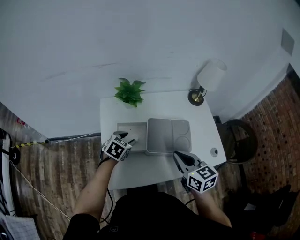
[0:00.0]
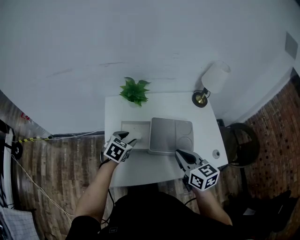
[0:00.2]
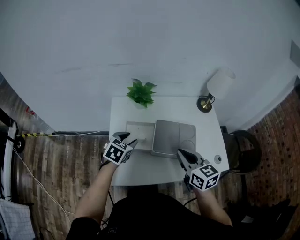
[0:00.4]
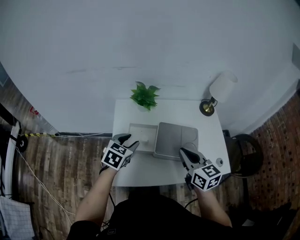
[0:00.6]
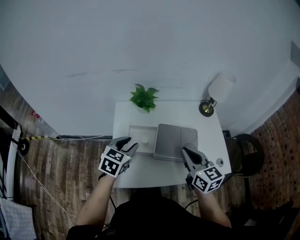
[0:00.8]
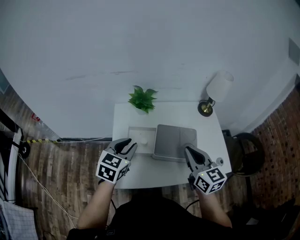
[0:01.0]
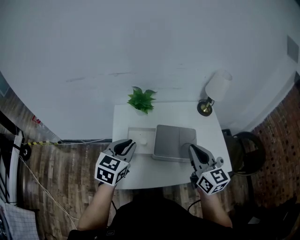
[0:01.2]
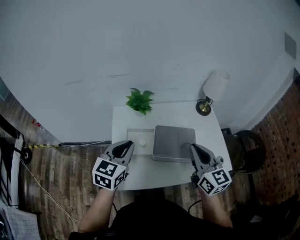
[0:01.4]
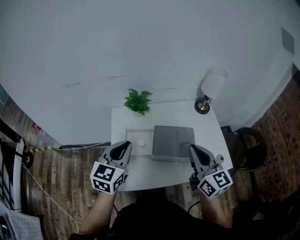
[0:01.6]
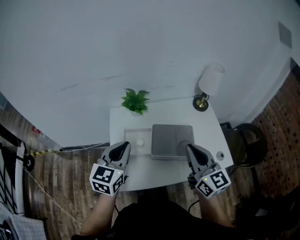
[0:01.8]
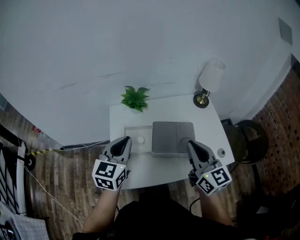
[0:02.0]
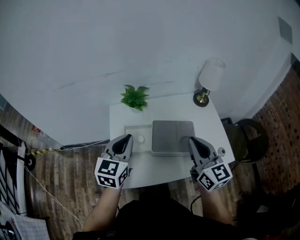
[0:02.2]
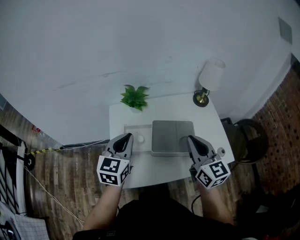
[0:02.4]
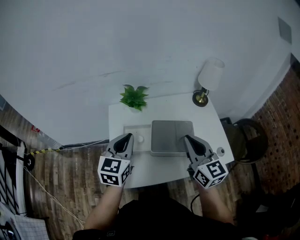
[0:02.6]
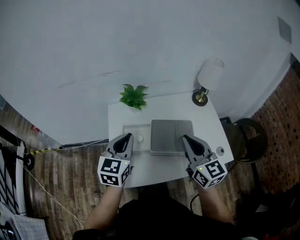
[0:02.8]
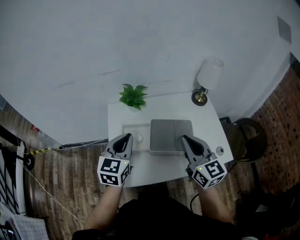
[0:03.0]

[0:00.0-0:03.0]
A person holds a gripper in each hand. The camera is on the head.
0:00.0 to 0:01.6: The left gripper moves upward and backward, roughly 25 cm, tips its fingers upward by roughly 30 degrees, and closes; the right gripper is displaced upward by some 10 cm, and turns by approximately 20 degrees.
0:01.6 to 0:03.0: The grippers move only a little.

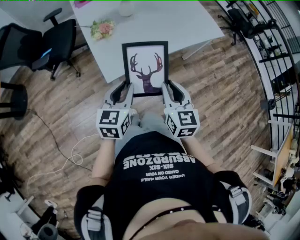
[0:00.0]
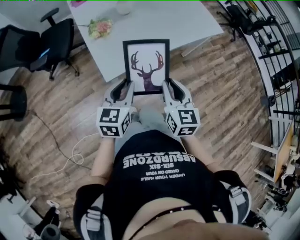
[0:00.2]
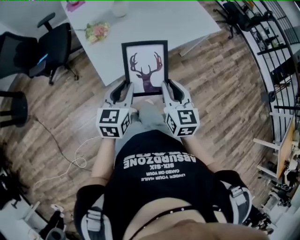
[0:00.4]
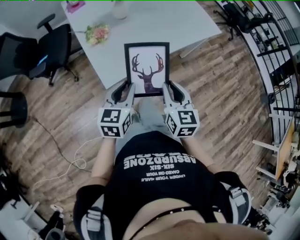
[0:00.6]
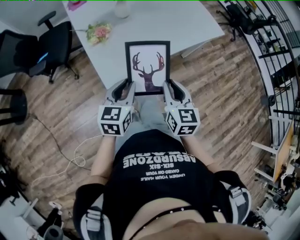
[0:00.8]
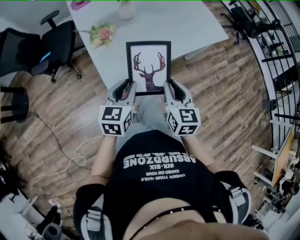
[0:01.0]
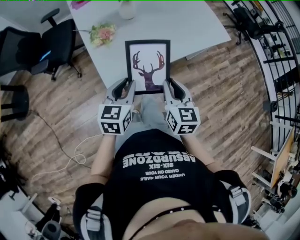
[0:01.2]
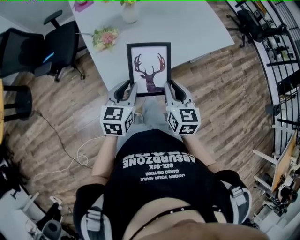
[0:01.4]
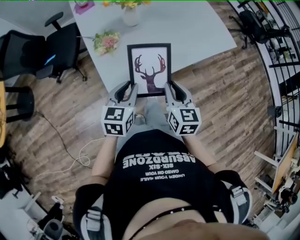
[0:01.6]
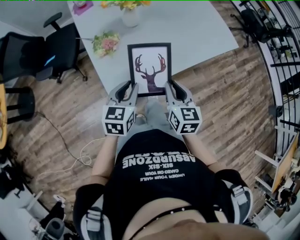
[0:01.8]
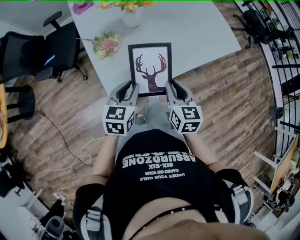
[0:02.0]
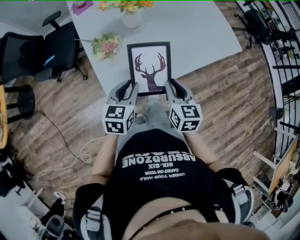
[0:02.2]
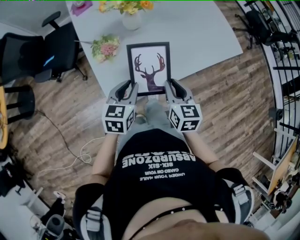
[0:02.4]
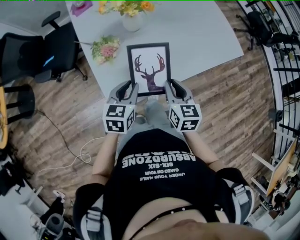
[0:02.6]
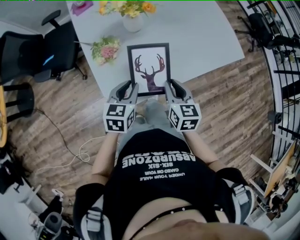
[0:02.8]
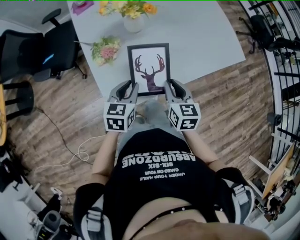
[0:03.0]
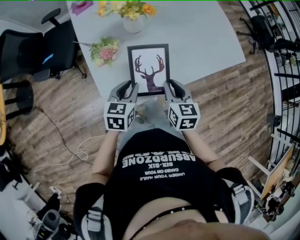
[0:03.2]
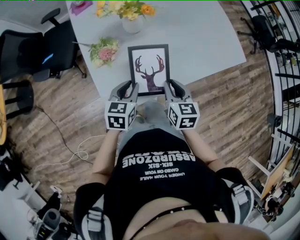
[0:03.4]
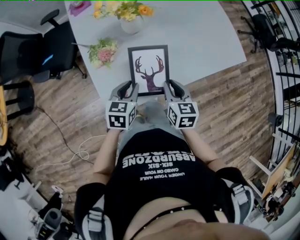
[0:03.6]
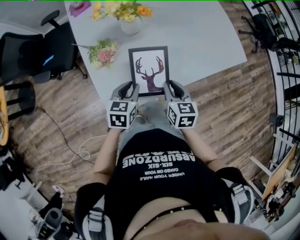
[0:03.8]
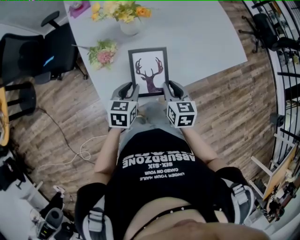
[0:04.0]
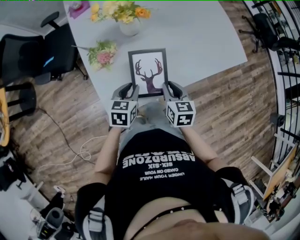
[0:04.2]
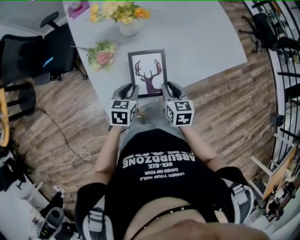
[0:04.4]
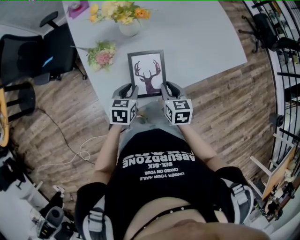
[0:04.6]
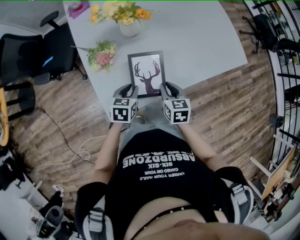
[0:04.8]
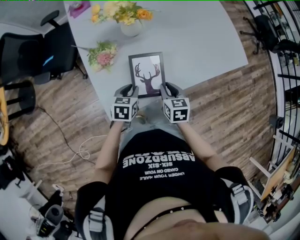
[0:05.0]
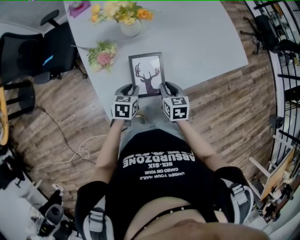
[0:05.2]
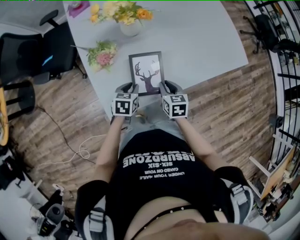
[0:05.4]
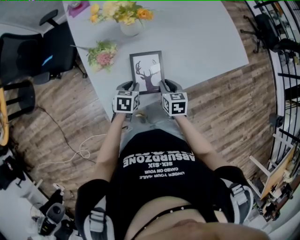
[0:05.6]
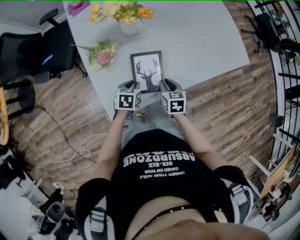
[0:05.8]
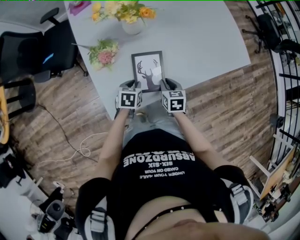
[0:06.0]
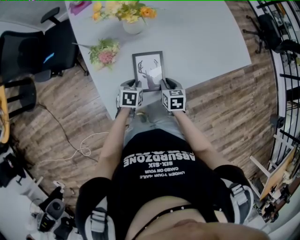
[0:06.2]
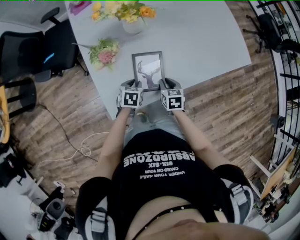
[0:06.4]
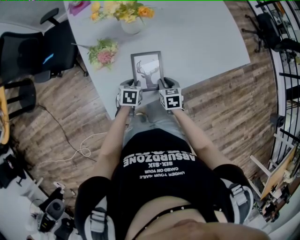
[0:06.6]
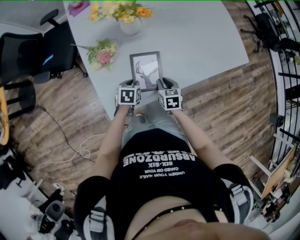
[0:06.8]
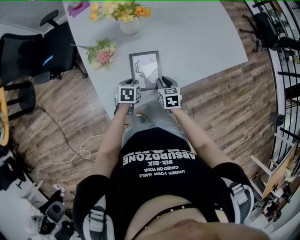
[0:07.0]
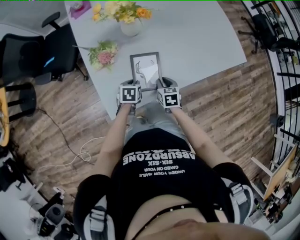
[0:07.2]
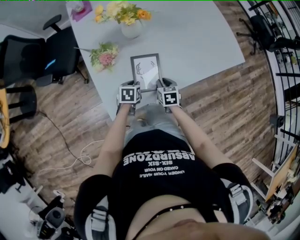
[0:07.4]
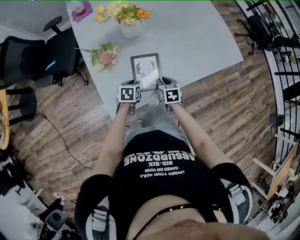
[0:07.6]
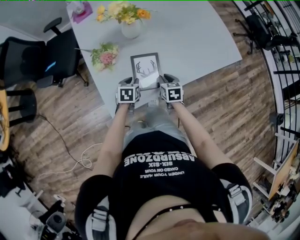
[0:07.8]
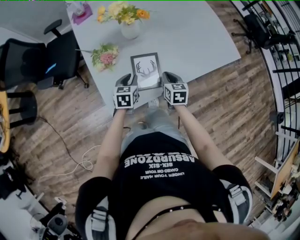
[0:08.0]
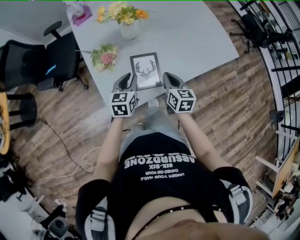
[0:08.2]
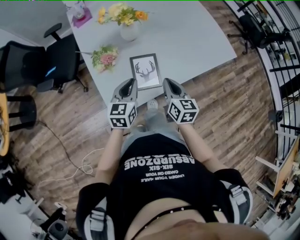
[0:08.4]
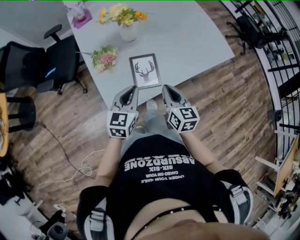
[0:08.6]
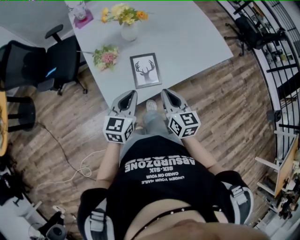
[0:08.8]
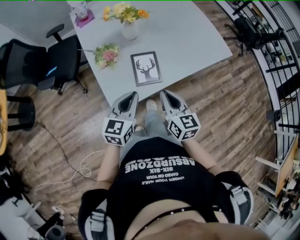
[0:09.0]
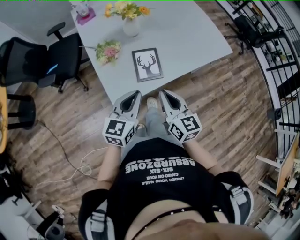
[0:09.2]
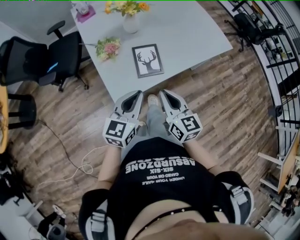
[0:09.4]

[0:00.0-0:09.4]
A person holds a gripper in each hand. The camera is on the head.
0:00.0 to 0:01.6: The two grippers go about 15 cm forward.
0:01.6 to 0:03.2: The two grippers go some 15 cm forward and downward.
0:03.2 to 0:04.8: Both grippers move downward, approximately 10 cm.
0:04.8 to 0:06.2: Both grippers move downward, roughly 10 cm.
0:06.2 to 0:07.8: The grippers stay close to where they were, moving slightly.
0:07.8 to 0:09.4: The grippers both shift upward and backward by roughly 30 cm. The right gripper tips its fingers upward by approximately 30 degrees; the left gripper tilts its fingers approximately 40 degrees upward.

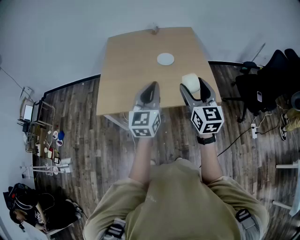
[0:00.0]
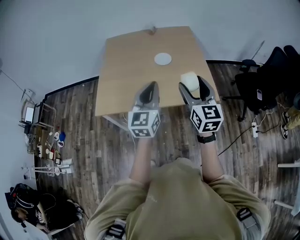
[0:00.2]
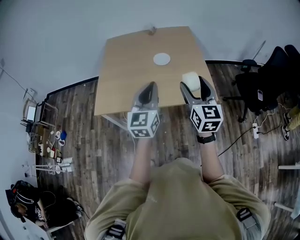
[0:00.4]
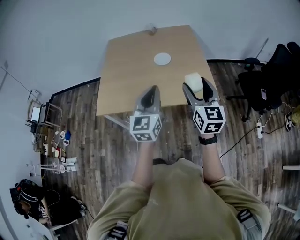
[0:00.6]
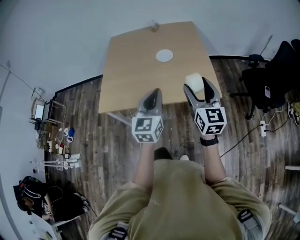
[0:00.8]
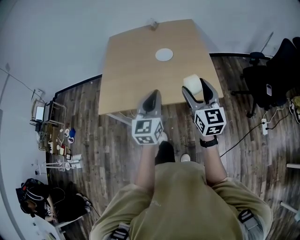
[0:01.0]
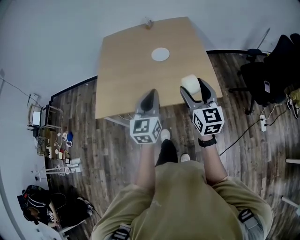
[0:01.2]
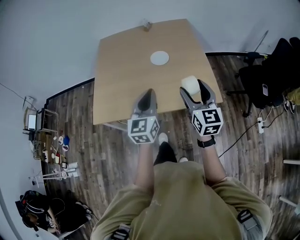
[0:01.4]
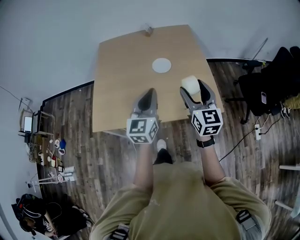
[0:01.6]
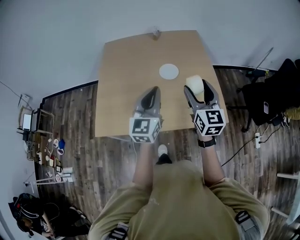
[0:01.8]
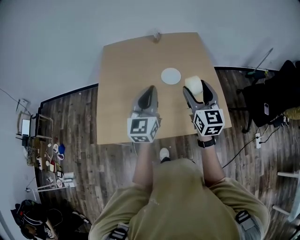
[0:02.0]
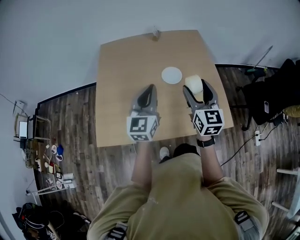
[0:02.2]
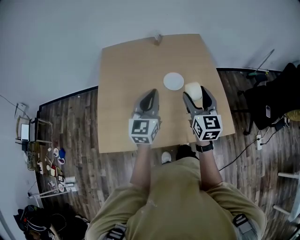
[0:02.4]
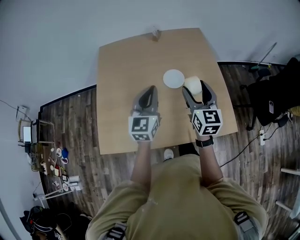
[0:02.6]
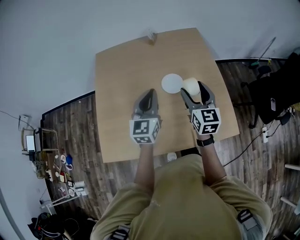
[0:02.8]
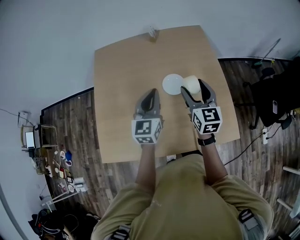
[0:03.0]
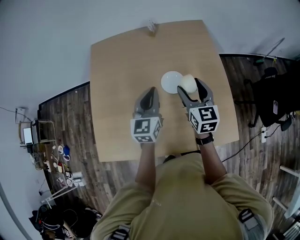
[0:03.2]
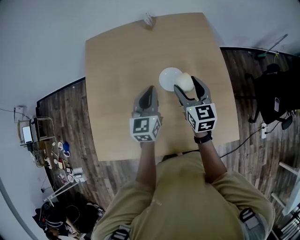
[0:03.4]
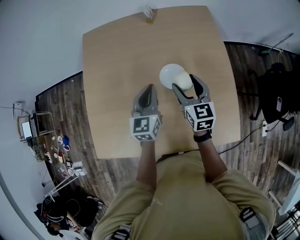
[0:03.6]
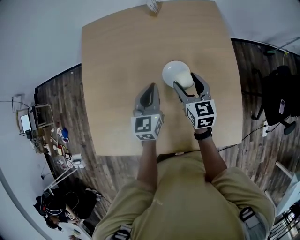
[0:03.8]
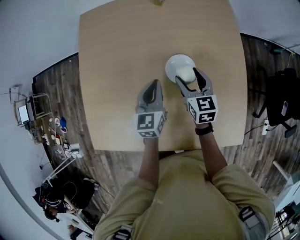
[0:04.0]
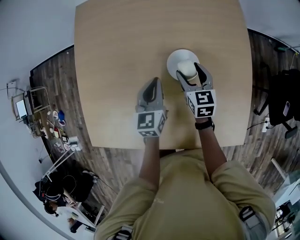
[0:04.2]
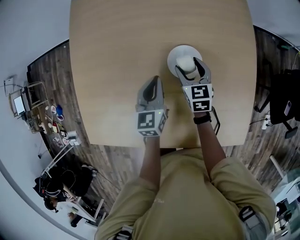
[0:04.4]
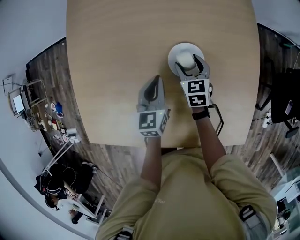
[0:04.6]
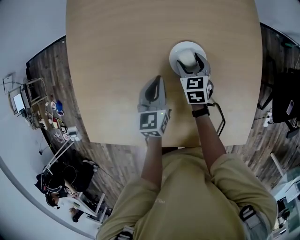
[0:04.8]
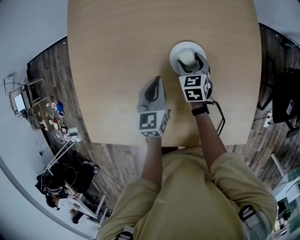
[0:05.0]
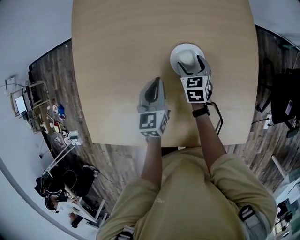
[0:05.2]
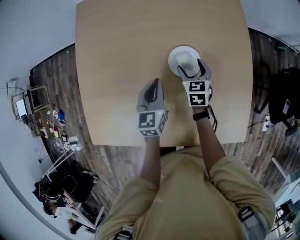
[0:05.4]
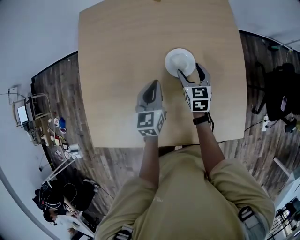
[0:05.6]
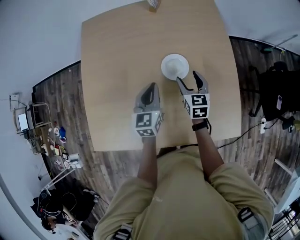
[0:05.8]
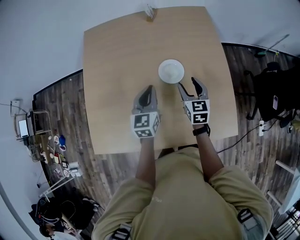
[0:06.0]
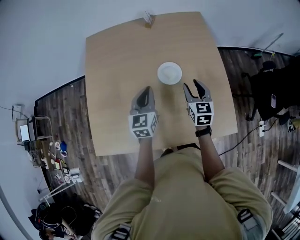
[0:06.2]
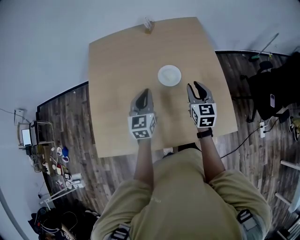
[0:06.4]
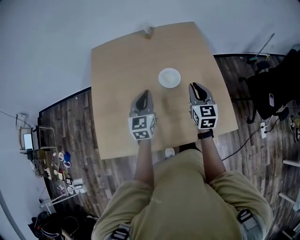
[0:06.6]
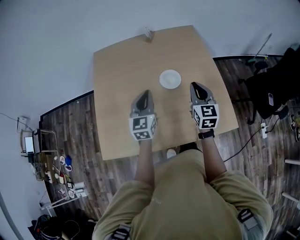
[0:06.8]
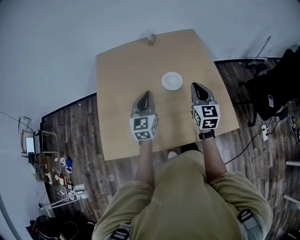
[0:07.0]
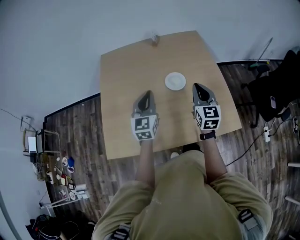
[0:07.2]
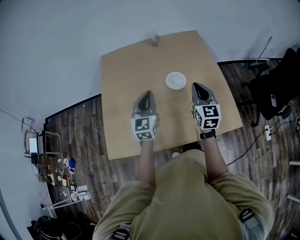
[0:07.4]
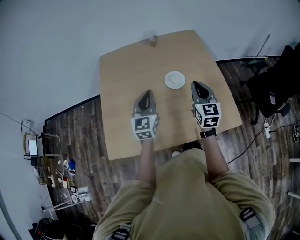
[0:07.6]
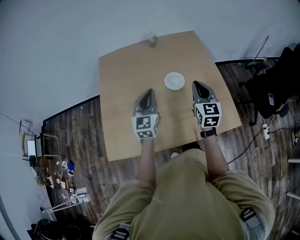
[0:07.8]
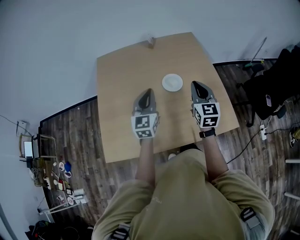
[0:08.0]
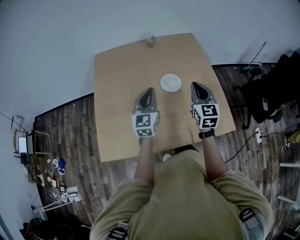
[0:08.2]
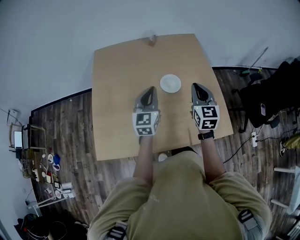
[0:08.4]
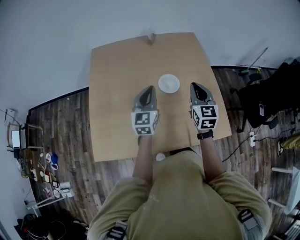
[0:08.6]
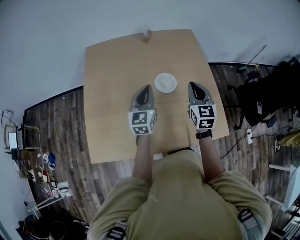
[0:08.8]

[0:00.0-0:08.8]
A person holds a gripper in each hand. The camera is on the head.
0:00.0 to 0:01.4: The right gripper is displaced forward, to the right and downward by approximately 10 cm, while the left gripper shifts some 10 cm forward, downward and to the right.
0:01.4 to 0:03.0: Both grippers travel together forward, about 35 cm.
0:03.0 to 0:04.4: Both grippers travel together downward and forward, roughly 30 cm. The left gripper turns by approximately 30 degrees. Meanwhile the right gripper turns by some 30 degrees.
0:04.4 to 0:05.8: The grippers both shift upward and backward by about 10 cm.
0:05.8 to 0:07.4: Both grippers move upward and backward, some 25 cm. The left gripper changes its angle by approximately 20 degrees, while the right gripper changes its angle by roughly 20 degrees, and closes up.
0:07.4 to 0:08.8: The two grippers go some 10 cm forward.

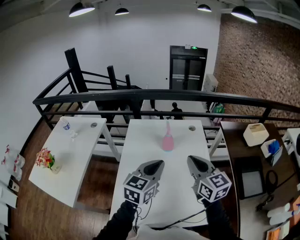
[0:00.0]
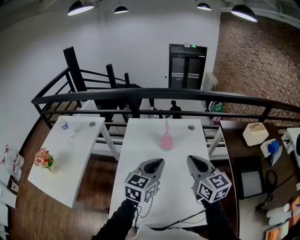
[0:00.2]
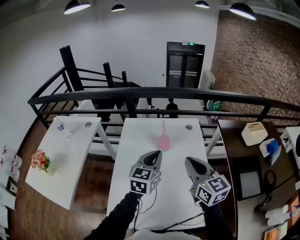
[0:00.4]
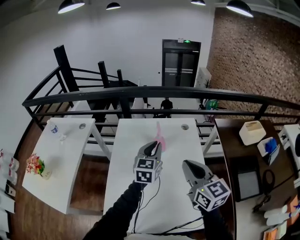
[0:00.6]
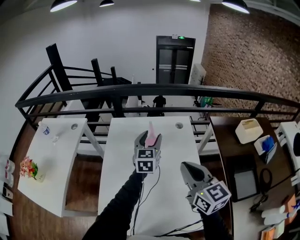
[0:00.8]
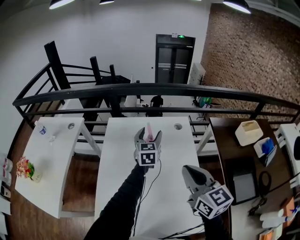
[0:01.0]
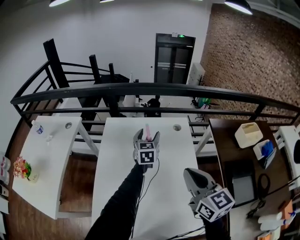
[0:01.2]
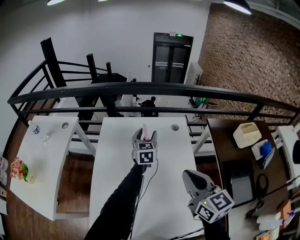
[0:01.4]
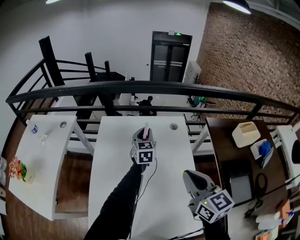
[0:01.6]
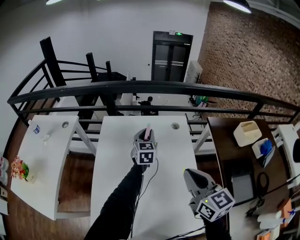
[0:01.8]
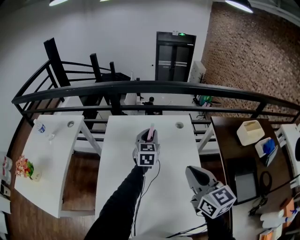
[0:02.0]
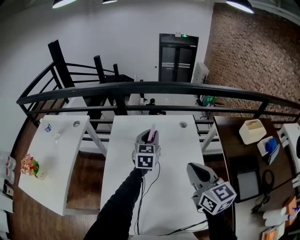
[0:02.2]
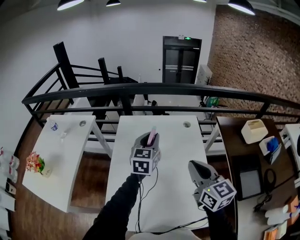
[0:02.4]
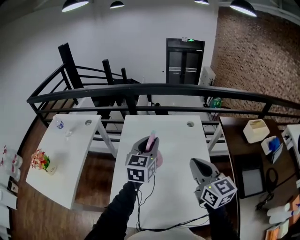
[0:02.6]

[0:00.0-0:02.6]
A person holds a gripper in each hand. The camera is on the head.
0:00.0 to 0:01.2: The right gripper heads forward and to the right, covering some 10 cm. The left gripper moves forward, some 35 cm, rotates about 20 degrees, and opens its fingers.
0:01.2 to 0:02.6: The right gripper moves backward and to the left, some 10 cm; the left gripper goes about 25 cm backward, upward and to the left, and closes up.
